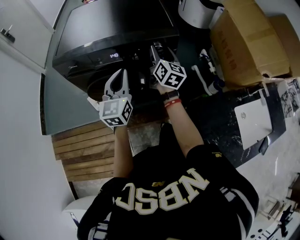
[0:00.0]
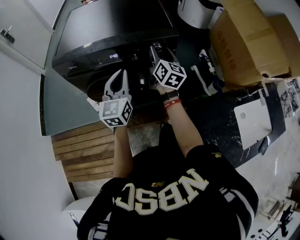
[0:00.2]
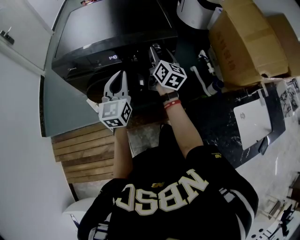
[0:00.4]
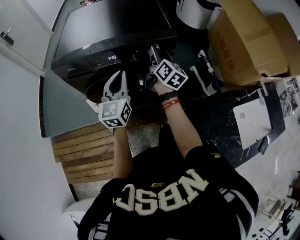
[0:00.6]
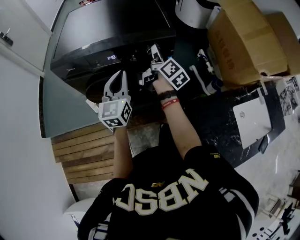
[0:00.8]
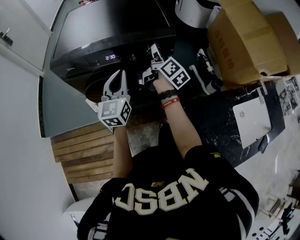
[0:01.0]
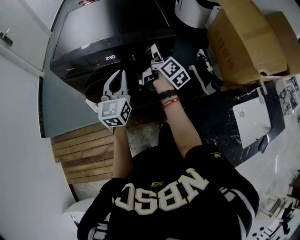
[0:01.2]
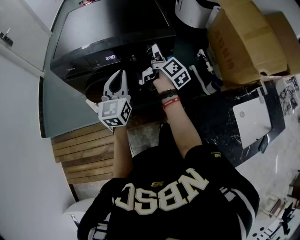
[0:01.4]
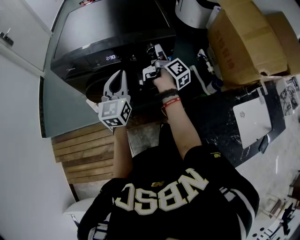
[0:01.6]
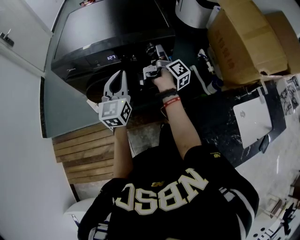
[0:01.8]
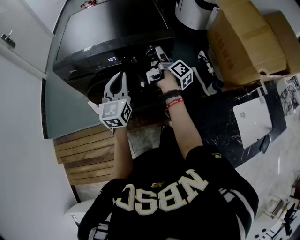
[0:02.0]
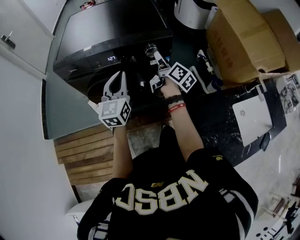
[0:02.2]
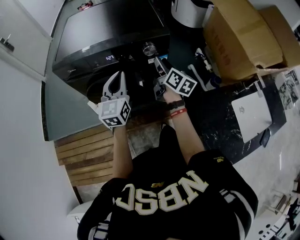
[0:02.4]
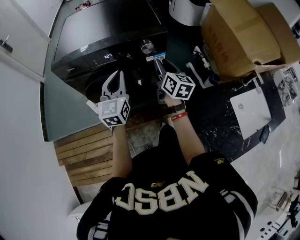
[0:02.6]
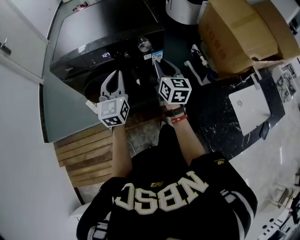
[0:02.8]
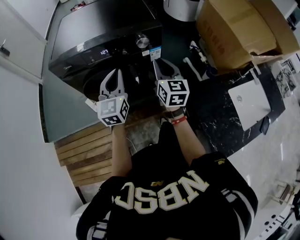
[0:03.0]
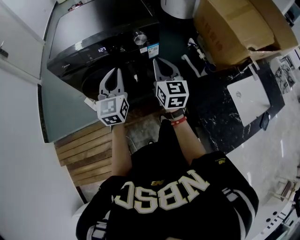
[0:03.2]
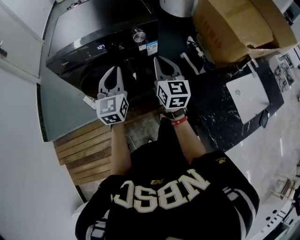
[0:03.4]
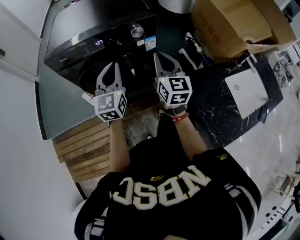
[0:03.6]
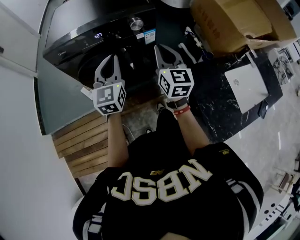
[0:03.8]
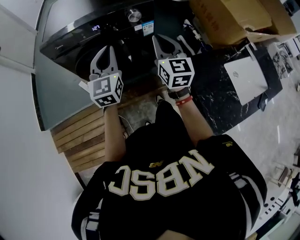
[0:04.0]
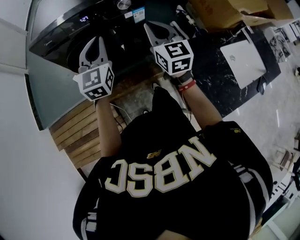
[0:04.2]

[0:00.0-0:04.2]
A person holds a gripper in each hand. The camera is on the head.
0.0 to 1.4 s: The right gripper changes its angle by roughly 40 degrees.
1.4 to 2.8 s: The right gripper is displaced backward by approximately 10 cm, rotates around the line of its fingers by about 50 degrees, counterclockwise from behind, and closes up.
2.8 to 4.2 s: The right gripper heads backward, covering some 5 cm, and closes its fingers; the left gripper changes place by roughly 5 cm.

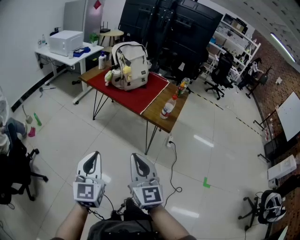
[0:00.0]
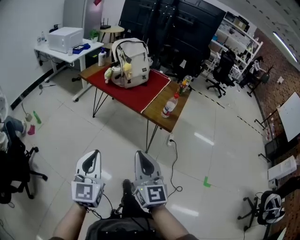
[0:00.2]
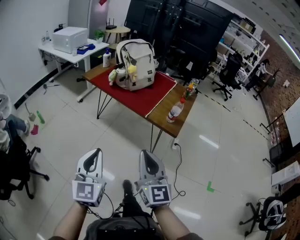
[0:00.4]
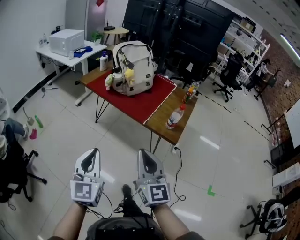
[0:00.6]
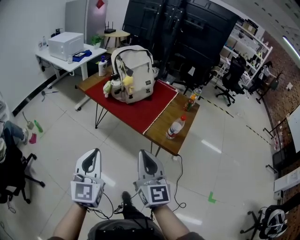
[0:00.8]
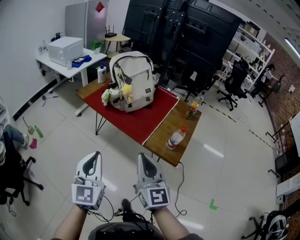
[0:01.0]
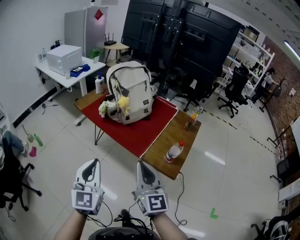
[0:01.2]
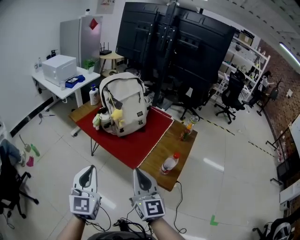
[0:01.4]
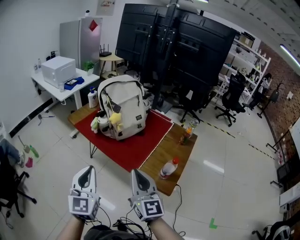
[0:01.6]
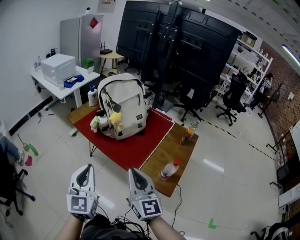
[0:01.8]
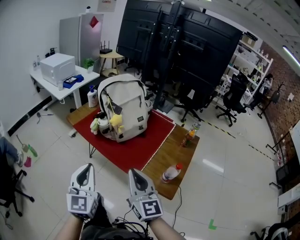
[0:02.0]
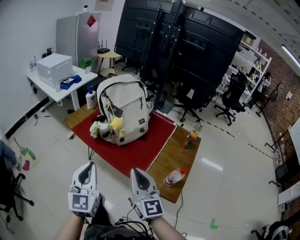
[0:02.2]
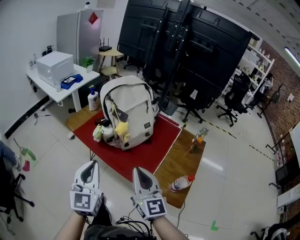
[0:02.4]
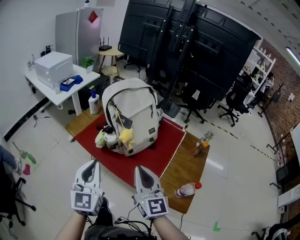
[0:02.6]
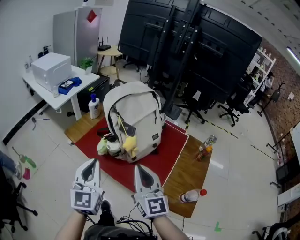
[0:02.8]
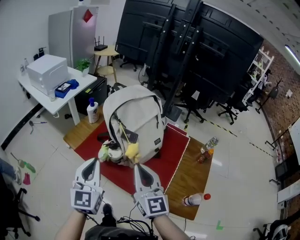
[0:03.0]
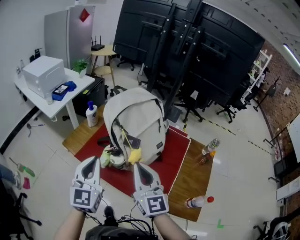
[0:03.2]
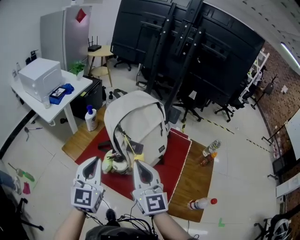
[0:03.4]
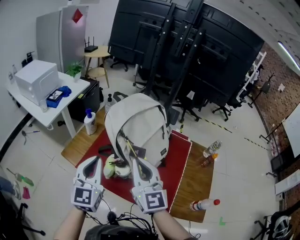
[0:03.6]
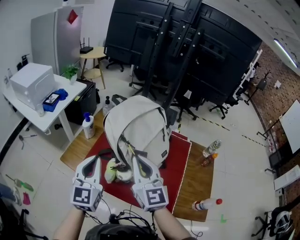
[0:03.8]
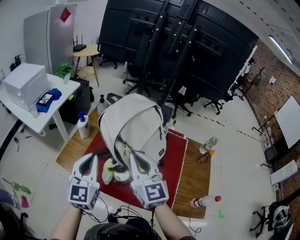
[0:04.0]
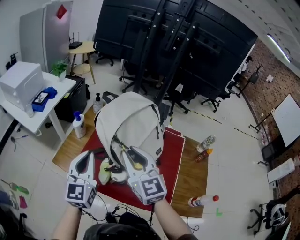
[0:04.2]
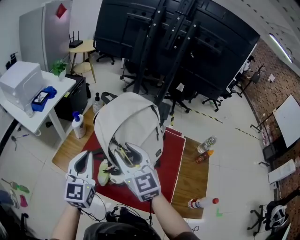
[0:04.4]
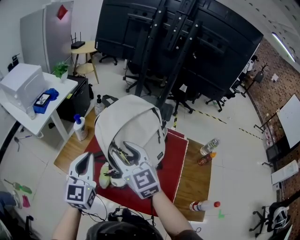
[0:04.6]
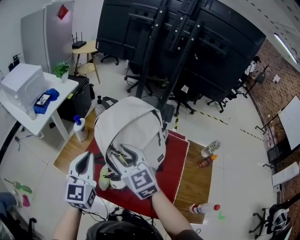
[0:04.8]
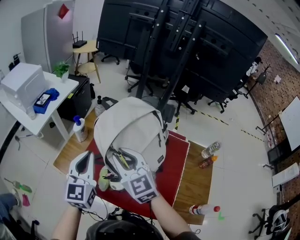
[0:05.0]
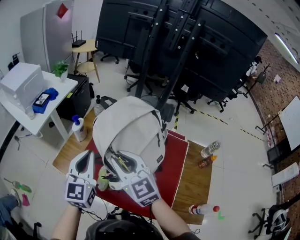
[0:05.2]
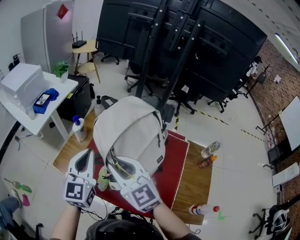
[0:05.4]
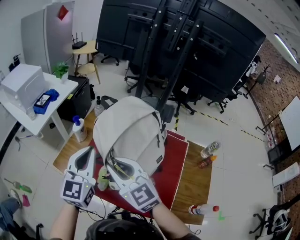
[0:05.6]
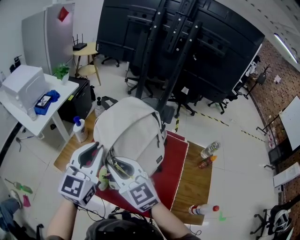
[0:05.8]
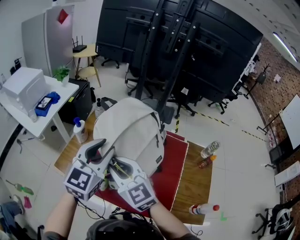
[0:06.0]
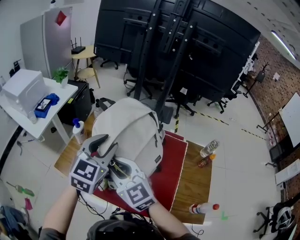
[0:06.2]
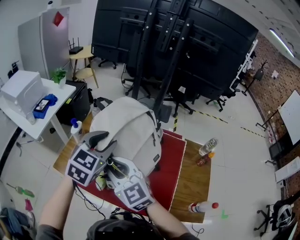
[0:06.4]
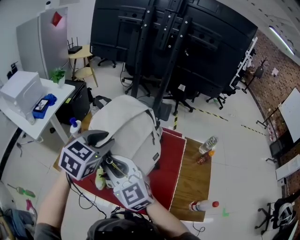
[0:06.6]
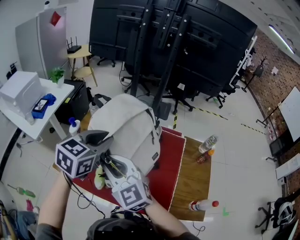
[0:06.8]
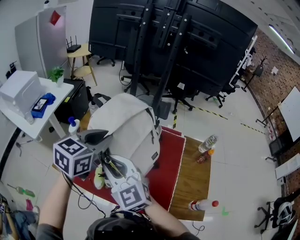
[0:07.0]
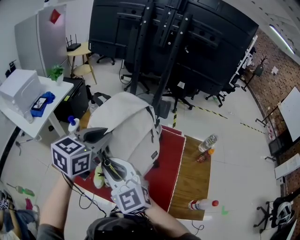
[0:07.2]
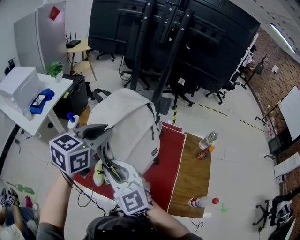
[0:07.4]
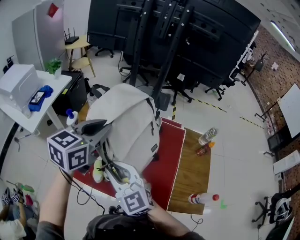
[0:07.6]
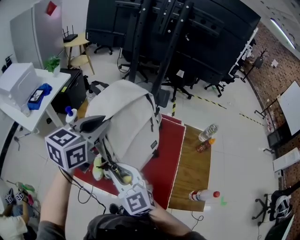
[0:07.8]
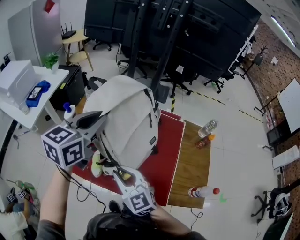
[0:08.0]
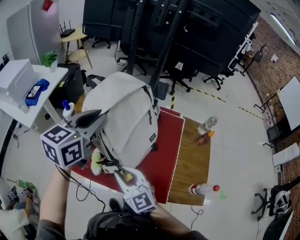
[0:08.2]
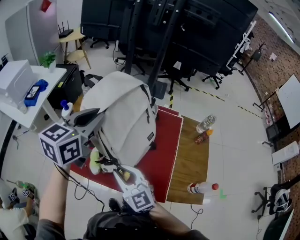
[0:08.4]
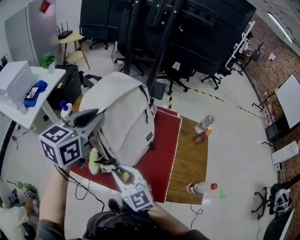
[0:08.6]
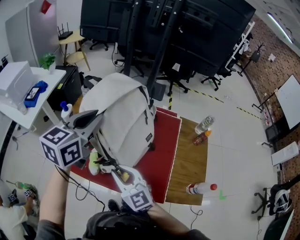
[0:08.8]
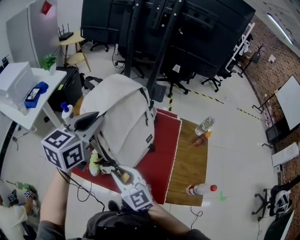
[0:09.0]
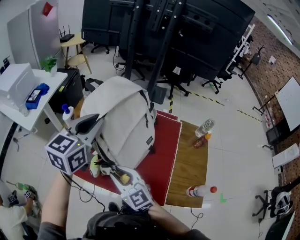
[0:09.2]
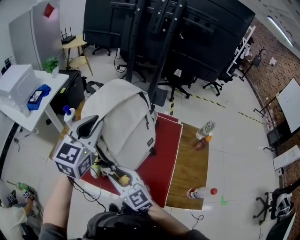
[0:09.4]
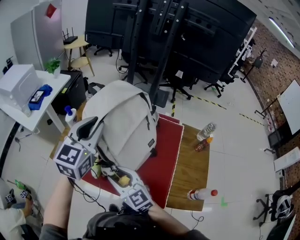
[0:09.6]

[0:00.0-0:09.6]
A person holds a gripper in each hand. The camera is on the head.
0.0 to 1.6 s: Both grippers are carried forward, approximately 40 cm.
1.6 to 3.2 s: The two grippers go roughly 40 cm forward.
3.2 to 4.8 s: Both grippers move forward, roughly 20 cm. The right gripper changes its angle by approximately 30 degrees, and opens its fingers.
4.8 to 6.4 s: The right gripper heads backward, covering roughly 5 cm; the left gripper is displaced to the right by some 10 cm, swivels approximately 30 degrees, and opens its fingers.
6.4 to 8.0 s: The left gripper turns by some 30 degrees, and closes. Meanwhile the right gripper goes about 10 cm downward and backward.
8.0 to 9.6 s: The grippers move only a little.

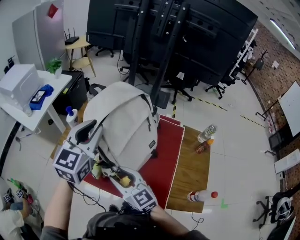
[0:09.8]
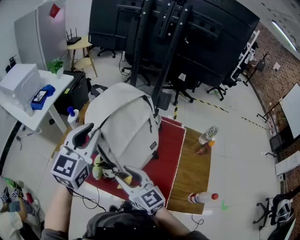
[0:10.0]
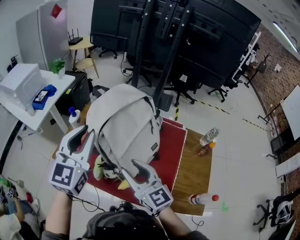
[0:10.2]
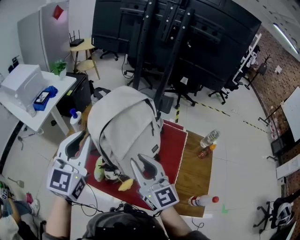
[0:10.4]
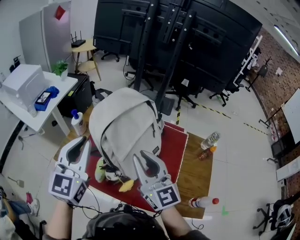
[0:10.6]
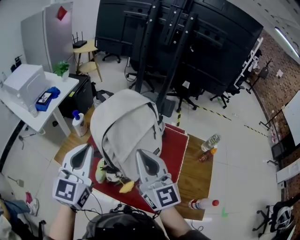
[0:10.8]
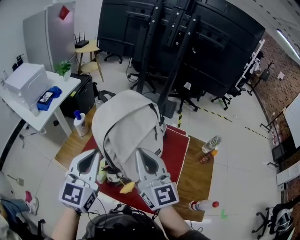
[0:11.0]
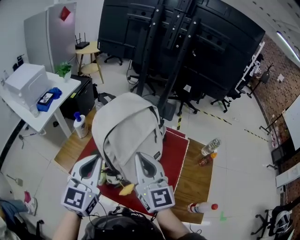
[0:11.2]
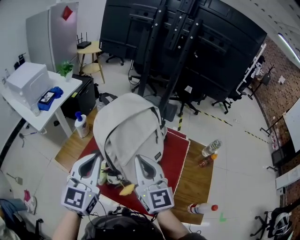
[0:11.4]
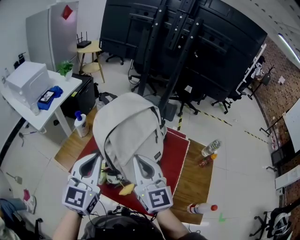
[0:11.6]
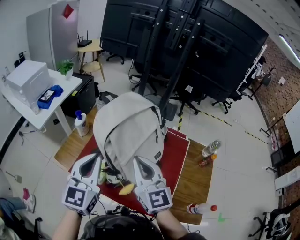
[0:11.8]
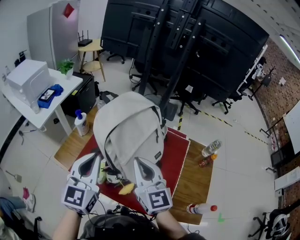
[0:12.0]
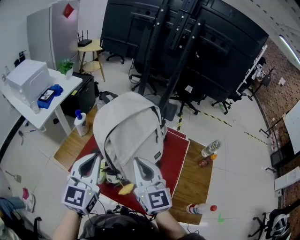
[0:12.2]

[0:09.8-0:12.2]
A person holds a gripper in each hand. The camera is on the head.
9.8 to 11.0 s: The right gripper is displaced upward and to the right by some 20 cm, turns by approximately 30 degrees, and closes its fingers, while the left gripper is displaced backward by roughly 5 cm, and closes.
11.0 to 12.2 s: The right gripper ends up some 5 cm from where it was.

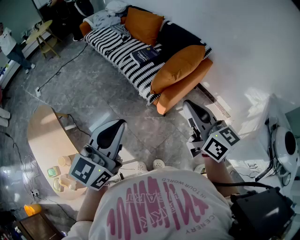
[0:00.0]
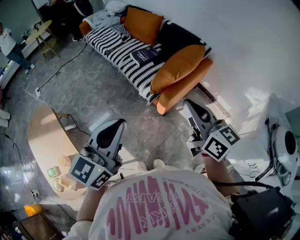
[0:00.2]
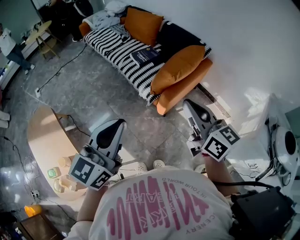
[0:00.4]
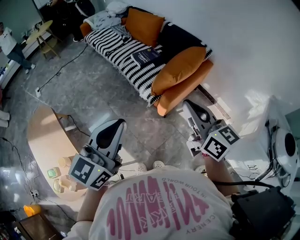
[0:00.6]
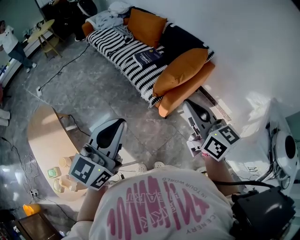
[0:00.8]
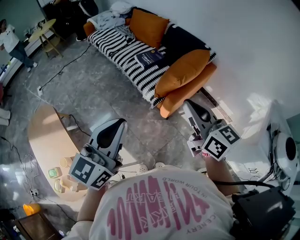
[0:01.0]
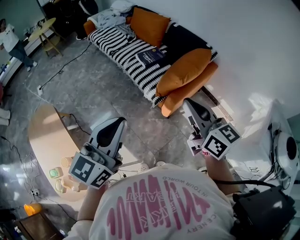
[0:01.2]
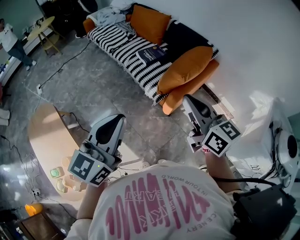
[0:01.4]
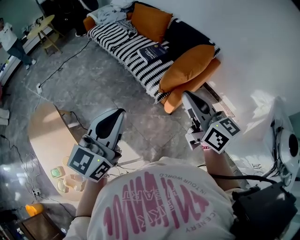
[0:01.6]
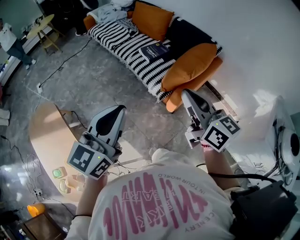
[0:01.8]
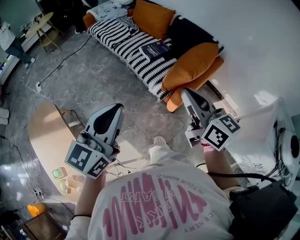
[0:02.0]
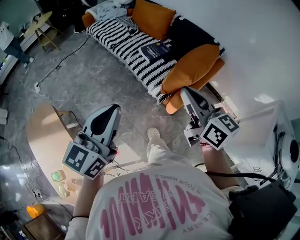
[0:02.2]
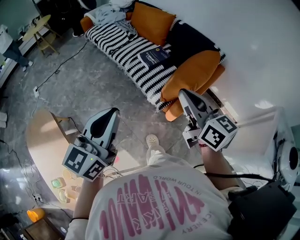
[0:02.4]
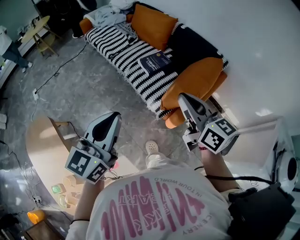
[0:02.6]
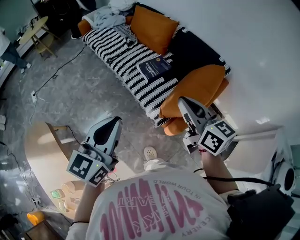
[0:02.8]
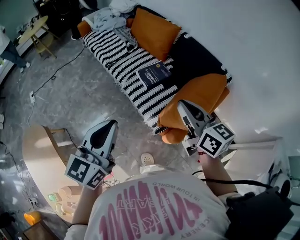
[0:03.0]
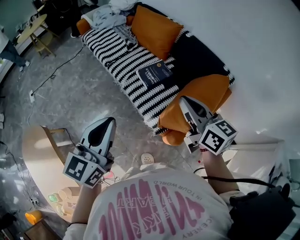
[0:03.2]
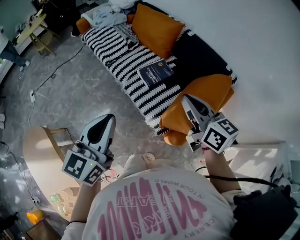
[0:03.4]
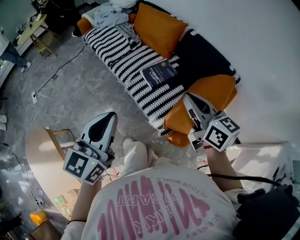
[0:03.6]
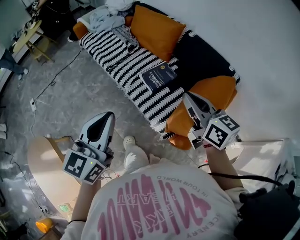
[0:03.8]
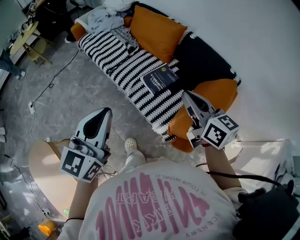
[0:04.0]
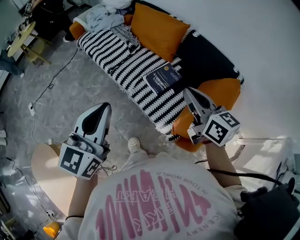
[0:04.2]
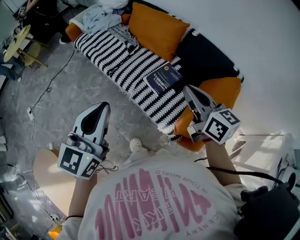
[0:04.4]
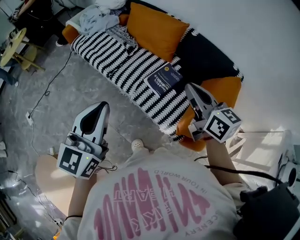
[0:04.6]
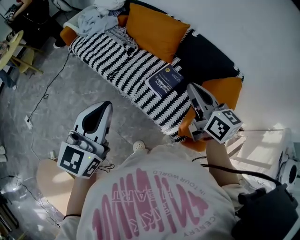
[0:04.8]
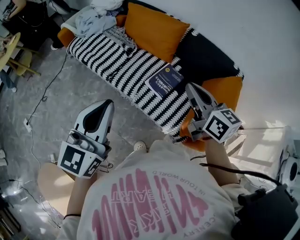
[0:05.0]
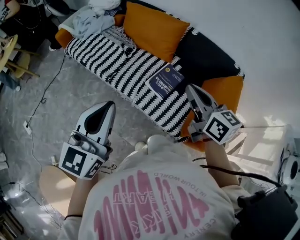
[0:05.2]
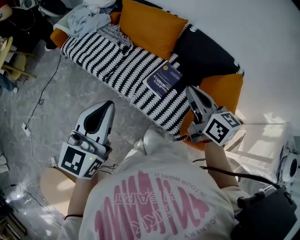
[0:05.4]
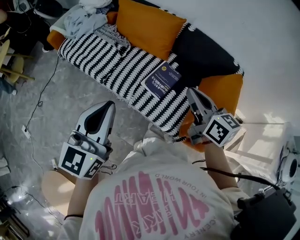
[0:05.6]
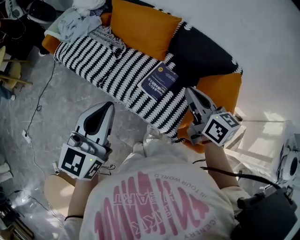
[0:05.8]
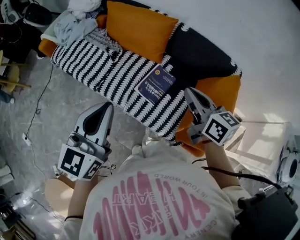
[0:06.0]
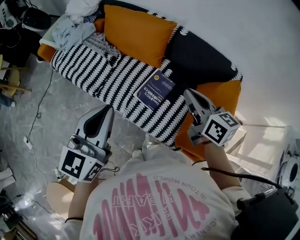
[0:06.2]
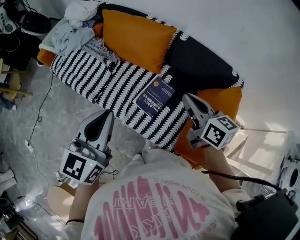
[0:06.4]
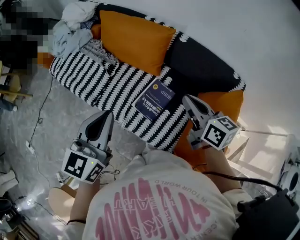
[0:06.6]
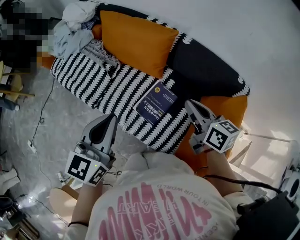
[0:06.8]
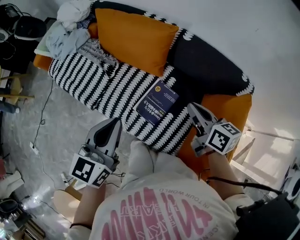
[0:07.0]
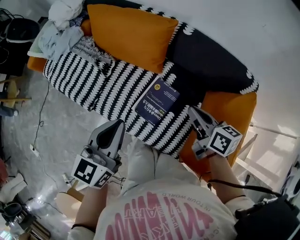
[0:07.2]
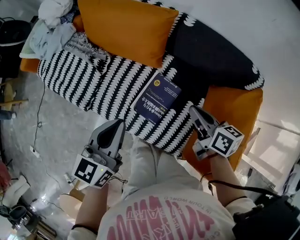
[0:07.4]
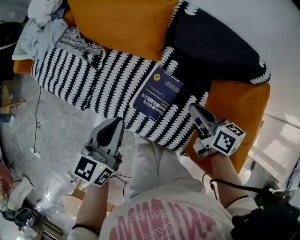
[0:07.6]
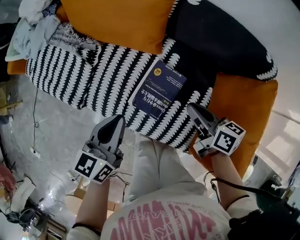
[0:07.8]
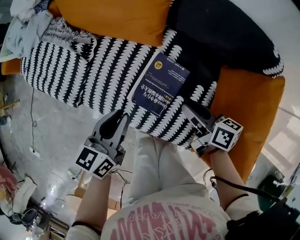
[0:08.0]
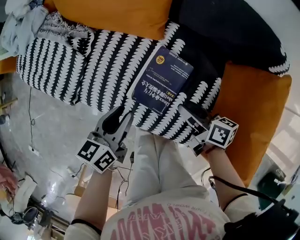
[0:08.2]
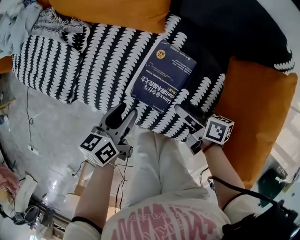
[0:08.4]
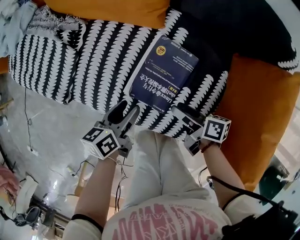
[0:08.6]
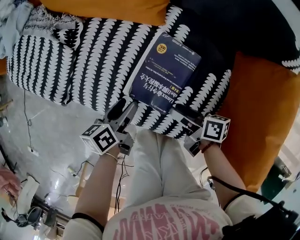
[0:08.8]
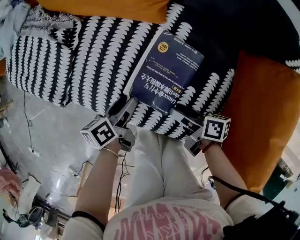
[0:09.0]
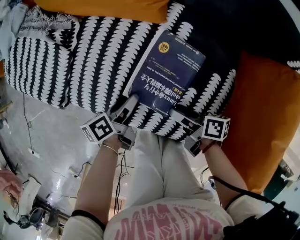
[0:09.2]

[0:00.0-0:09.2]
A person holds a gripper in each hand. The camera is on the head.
0.0 to 1.6 s: The left gripper ends up some 5 cm from where it was.
1.6 to 3.0 s: The left gripper shifts by roughly 25 cm.
3.0 to 4.6 s: The left gripper shifts by approximately 25 cm.
4.6 to 6.2 s: The left gripper changes place by roughly 15 cm.
6.2 to 7.6 s: The left gripper heads downward, covering approximately 20 cm, and changes its angle by about 20 degrees.
7.6 to 9.2 s: The left gripper is displaced downward by approximately 30 cm, rolls counterclockwise, seen from behind, by about 50 degrees, and opens up.
